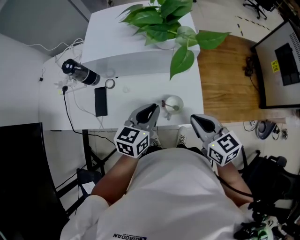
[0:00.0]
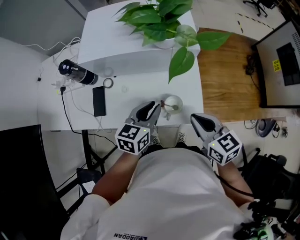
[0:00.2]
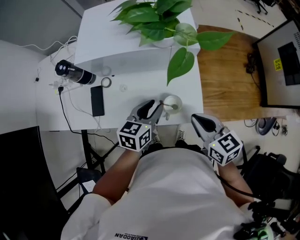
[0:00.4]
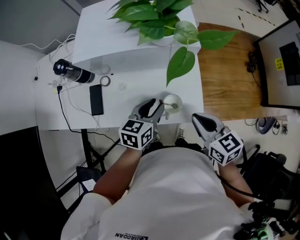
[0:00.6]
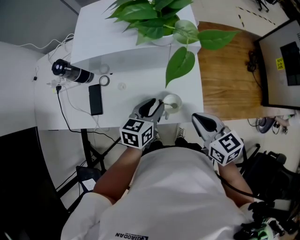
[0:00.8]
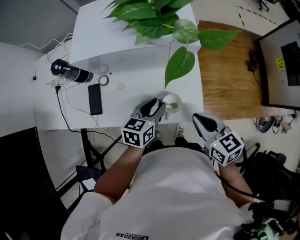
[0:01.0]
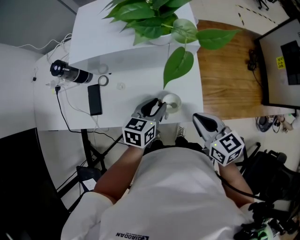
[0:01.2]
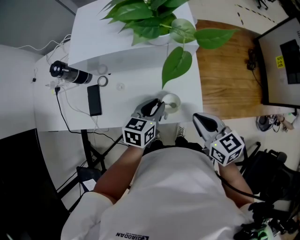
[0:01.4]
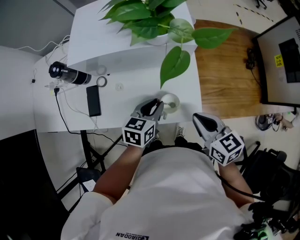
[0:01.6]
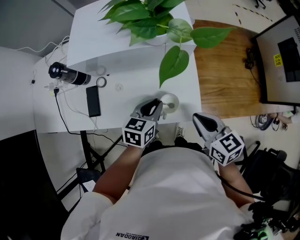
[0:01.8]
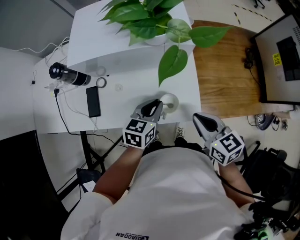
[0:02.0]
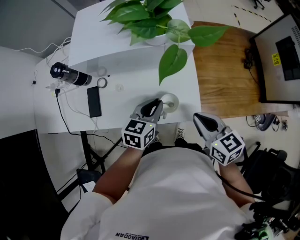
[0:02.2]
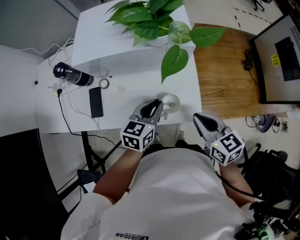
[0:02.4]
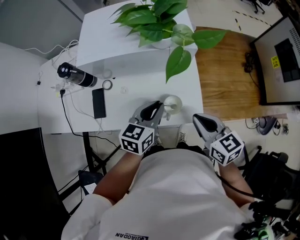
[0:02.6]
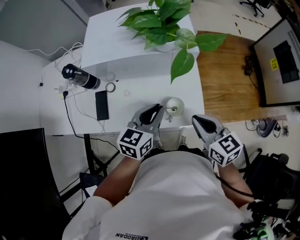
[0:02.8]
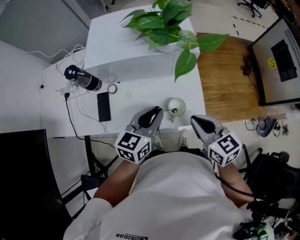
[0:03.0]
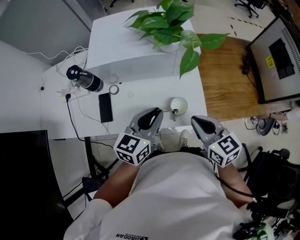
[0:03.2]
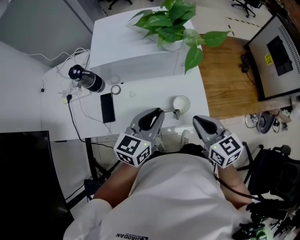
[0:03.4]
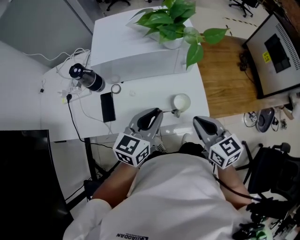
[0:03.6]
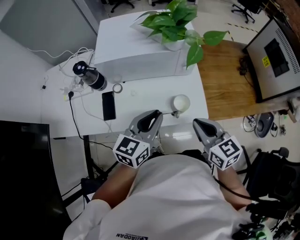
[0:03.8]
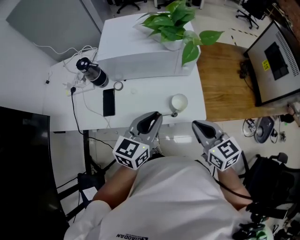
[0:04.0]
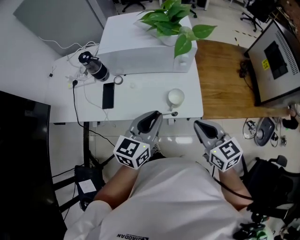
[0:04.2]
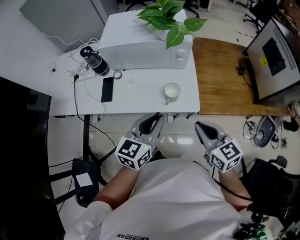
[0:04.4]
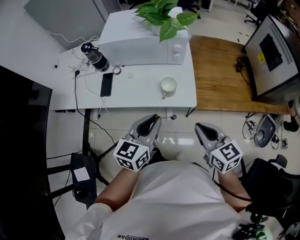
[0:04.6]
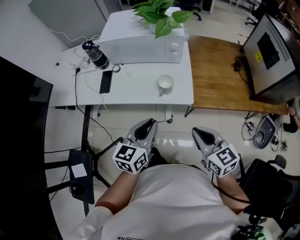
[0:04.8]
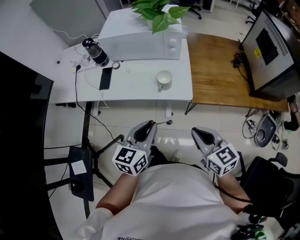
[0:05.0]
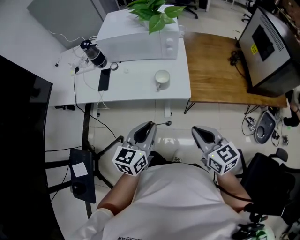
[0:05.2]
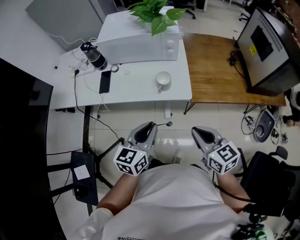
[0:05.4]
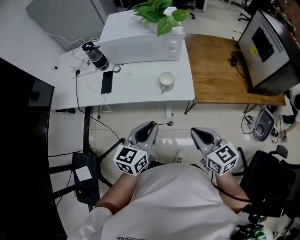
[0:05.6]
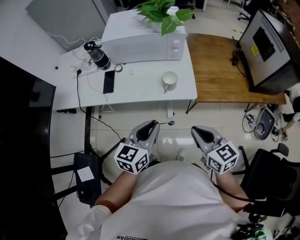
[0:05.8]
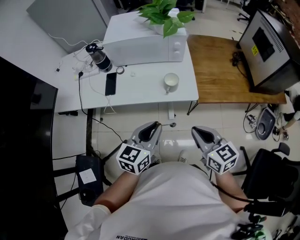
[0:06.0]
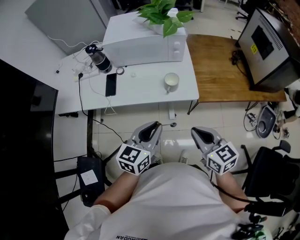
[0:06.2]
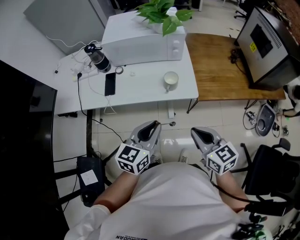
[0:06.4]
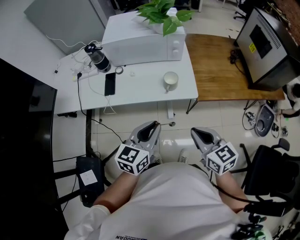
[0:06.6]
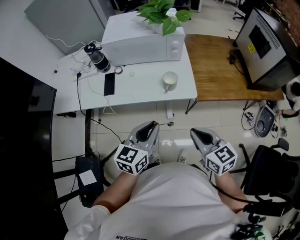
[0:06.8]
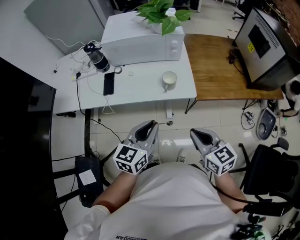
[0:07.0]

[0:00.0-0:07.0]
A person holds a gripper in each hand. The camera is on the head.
0:00.0 to 0:01.4: The left gripper moves downward, some 10 cm.
0:01.4 to 0:02.8: The left gripper travels upward by about 10 cm.
0:02.8 to 0:04.2: The right gripper is displaced backward by about 10 cm. The left gripper shifts roughly 15 cm backward and upward.
0:04.2 to 0:05.6: The two grippers go roughly 15 cm backward.
0:05.6 to 0:07.0: The grippers stay close to where they were, moving slightly.

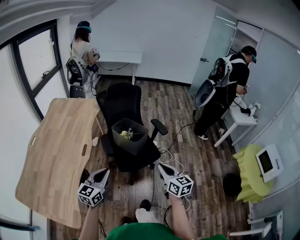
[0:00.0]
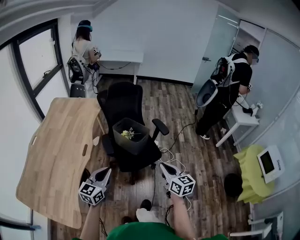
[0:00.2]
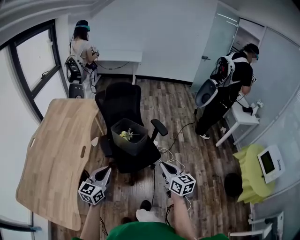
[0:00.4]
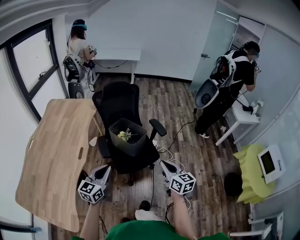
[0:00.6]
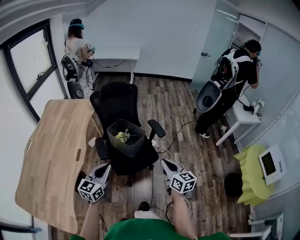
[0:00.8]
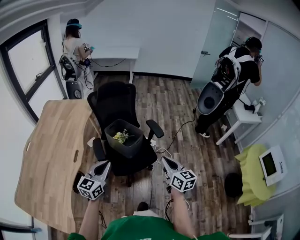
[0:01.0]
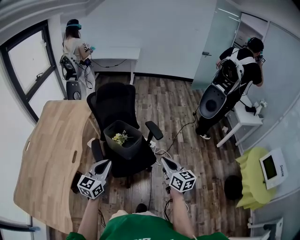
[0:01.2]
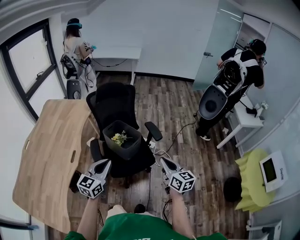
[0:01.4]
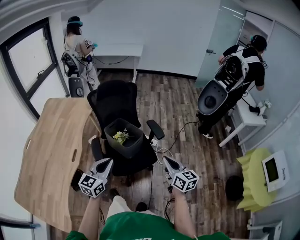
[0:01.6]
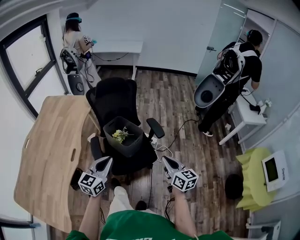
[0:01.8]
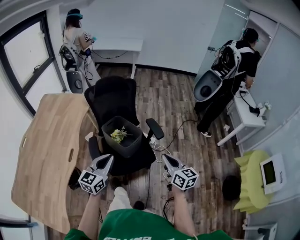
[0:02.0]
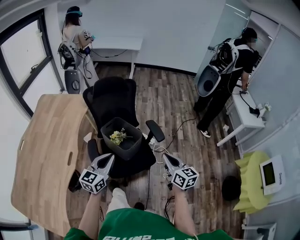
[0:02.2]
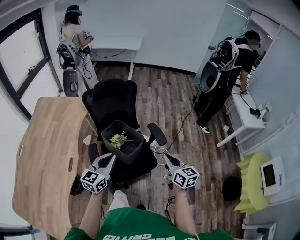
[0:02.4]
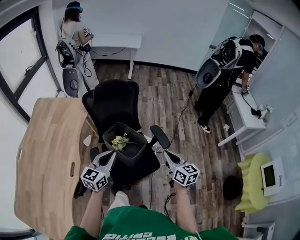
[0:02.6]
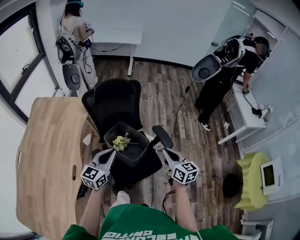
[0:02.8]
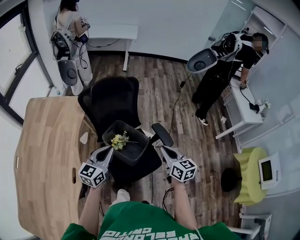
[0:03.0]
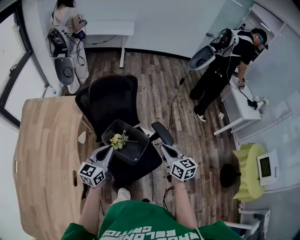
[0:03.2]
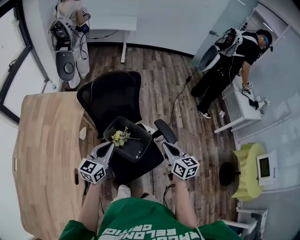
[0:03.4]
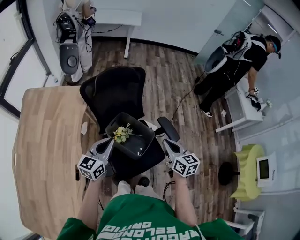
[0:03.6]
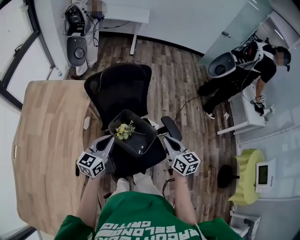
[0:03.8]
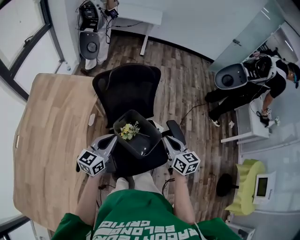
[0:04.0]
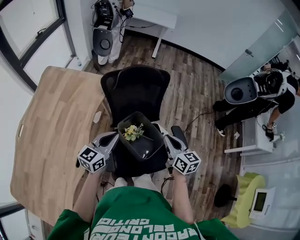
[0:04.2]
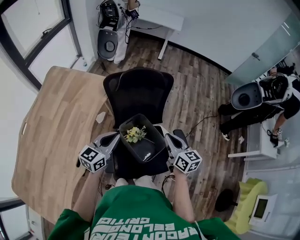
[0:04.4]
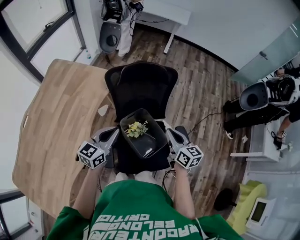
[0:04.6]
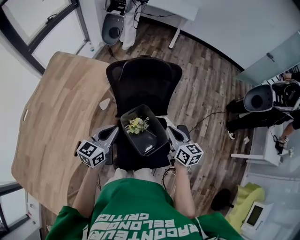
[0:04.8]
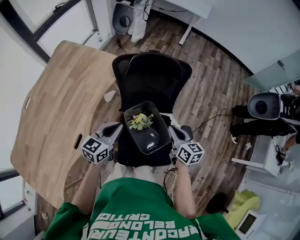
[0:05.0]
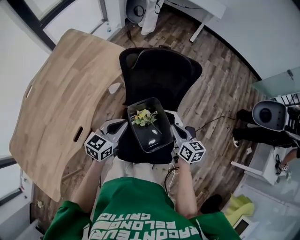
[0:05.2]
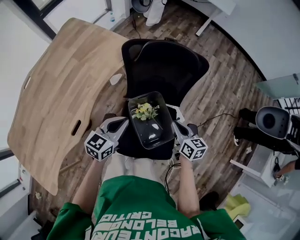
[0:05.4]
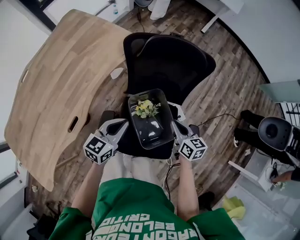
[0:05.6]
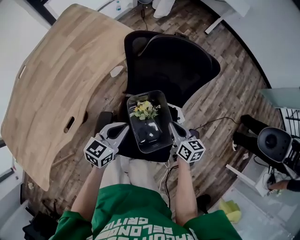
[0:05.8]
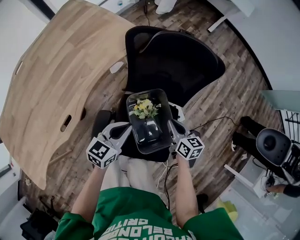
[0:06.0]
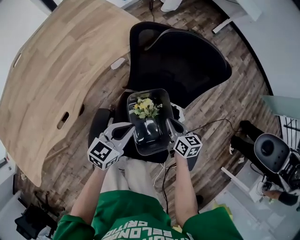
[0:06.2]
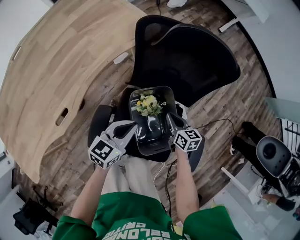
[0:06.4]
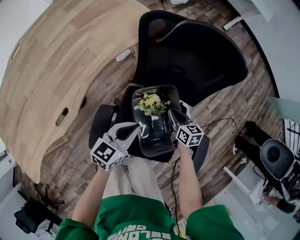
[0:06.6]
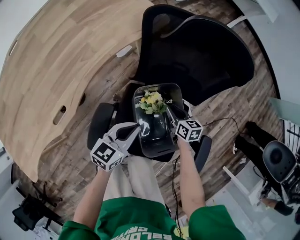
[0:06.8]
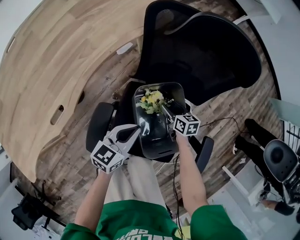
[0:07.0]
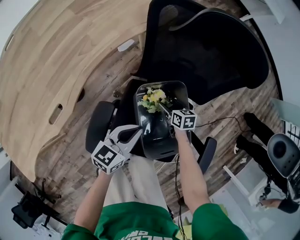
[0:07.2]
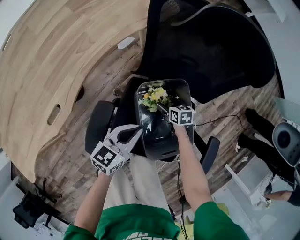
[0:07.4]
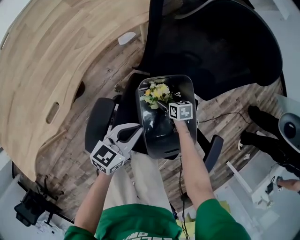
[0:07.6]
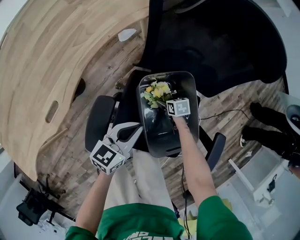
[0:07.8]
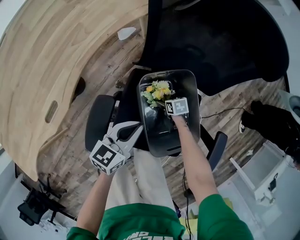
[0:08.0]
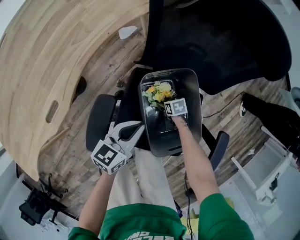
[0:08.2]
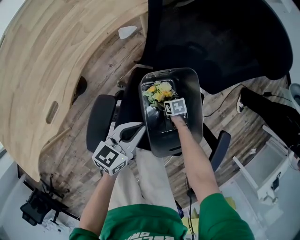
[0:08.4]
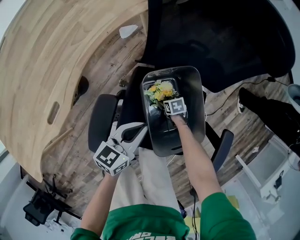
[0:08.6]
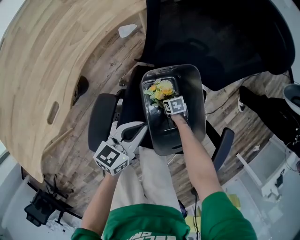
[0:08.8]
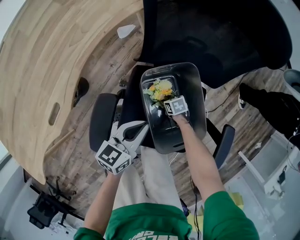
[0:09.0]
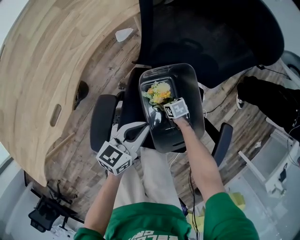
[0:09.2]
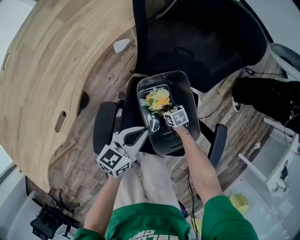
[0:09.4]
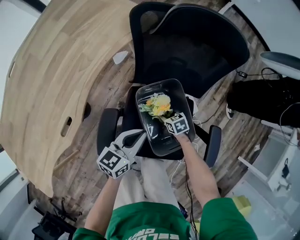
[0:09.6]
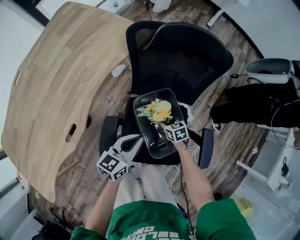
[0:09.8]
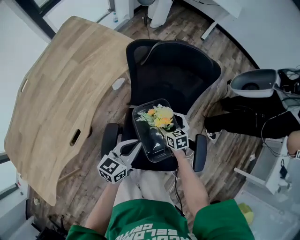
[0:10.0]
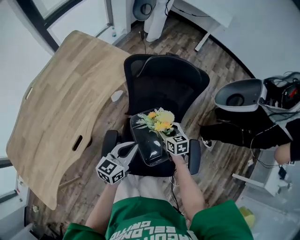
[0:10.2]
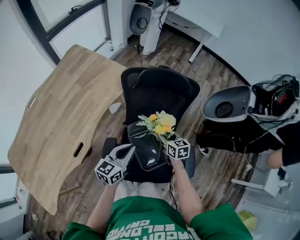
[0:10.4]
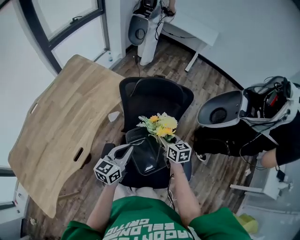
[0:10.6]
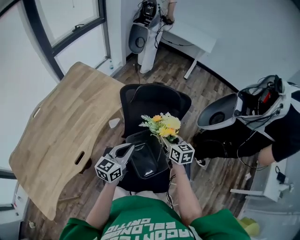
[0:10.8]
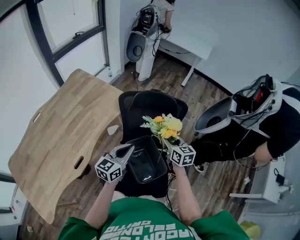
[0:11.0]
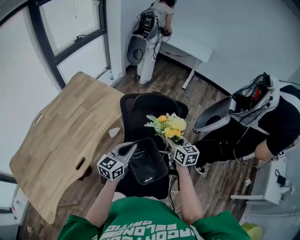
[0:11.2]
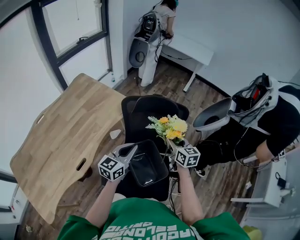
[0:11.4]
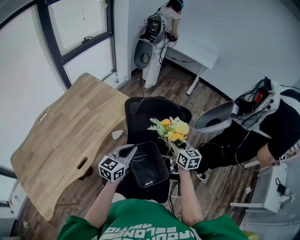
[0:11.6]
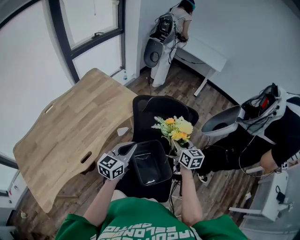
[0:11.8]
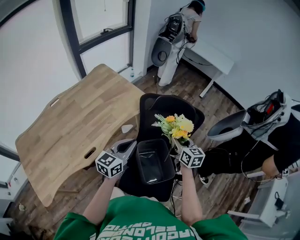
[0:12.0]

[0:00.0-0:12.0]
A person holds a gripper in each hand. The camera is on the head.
0:00.0 to 0:01.6: Both grippers move forward and to the right, approximately 20 cm.
0:01.6 to 0:03.0: The two grippers go some 25 cm forward and to the left.
0:03.0 to 0:04.4: The right gripper heads forward and to the left, covering some 15 cm; the left gripper heads forward and to the left, covering approximately 10 cm.
0:04.4 to 0:06.0: The left gripper shifts some 15 cm downward, and rotates some 20 degrees. The right gripper travels downward and forward by about 25 cm, and turns by some 30 degrees.
0:06.0 to 0:07.6: The left gripper travels downward by about 15 cm; the right gripper moves downward, approximately 35 cm, rotates some 40 degrees, and opens its fingers.
0:07.6 to 0:09.0: The right gripper shifts by some 10 cm, and closes its fingers.
0:09.0 to 0:10.4: The left gripper is displaced upward by roughly 25 cm, while the right gripper moves upward, some 40 cm, and tips its fingers upward by some 30 degrees.
0:10.4 to 0:12.0: The left gripper travels upward by about 10 cm; the right gripper heads upward, covering approximately 20 cm.

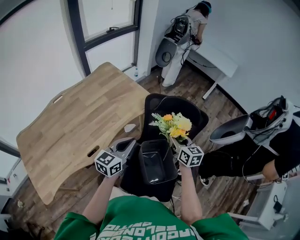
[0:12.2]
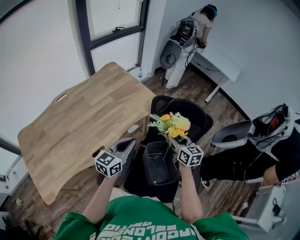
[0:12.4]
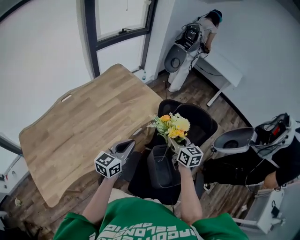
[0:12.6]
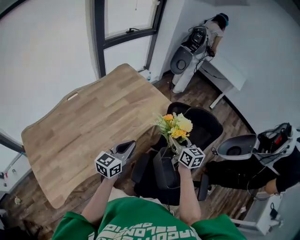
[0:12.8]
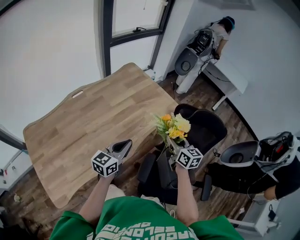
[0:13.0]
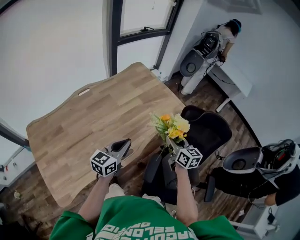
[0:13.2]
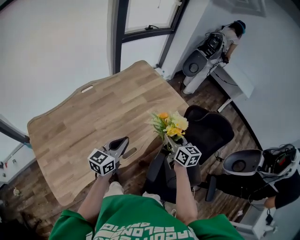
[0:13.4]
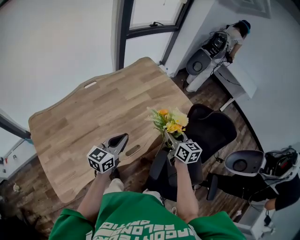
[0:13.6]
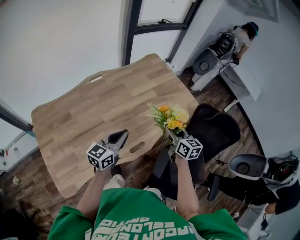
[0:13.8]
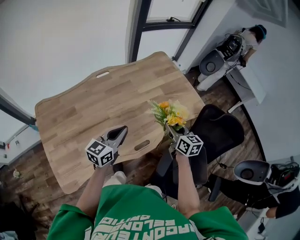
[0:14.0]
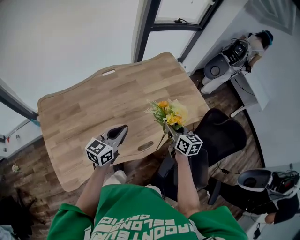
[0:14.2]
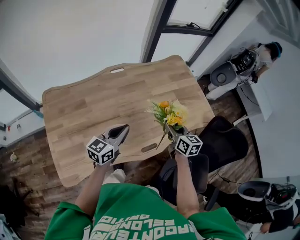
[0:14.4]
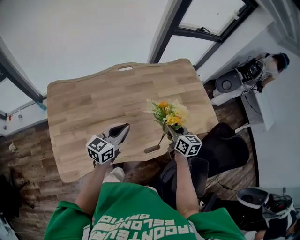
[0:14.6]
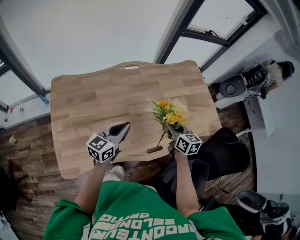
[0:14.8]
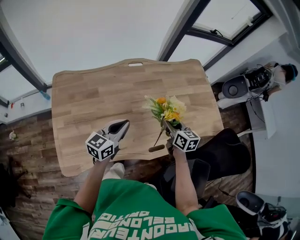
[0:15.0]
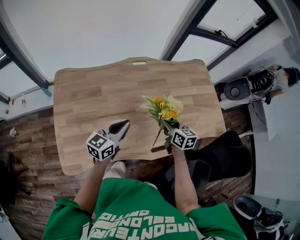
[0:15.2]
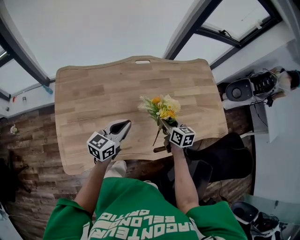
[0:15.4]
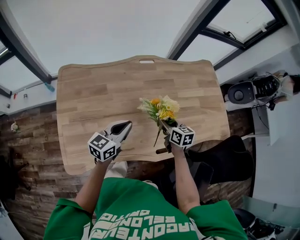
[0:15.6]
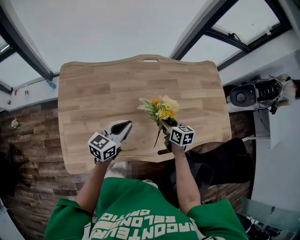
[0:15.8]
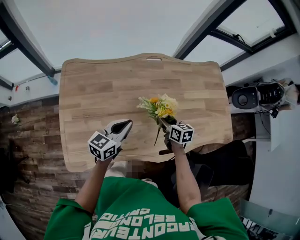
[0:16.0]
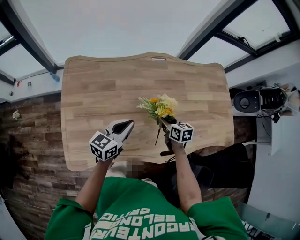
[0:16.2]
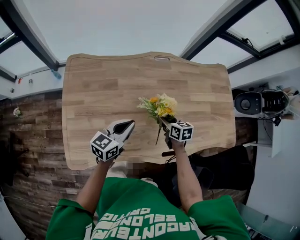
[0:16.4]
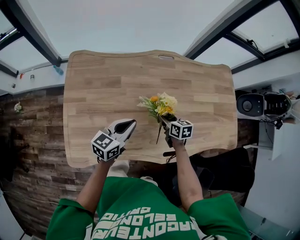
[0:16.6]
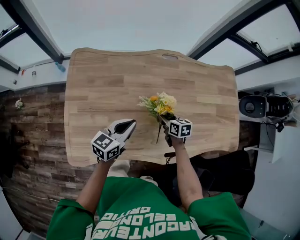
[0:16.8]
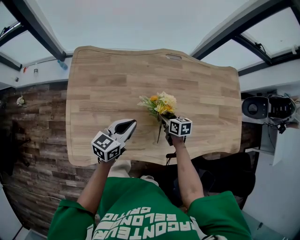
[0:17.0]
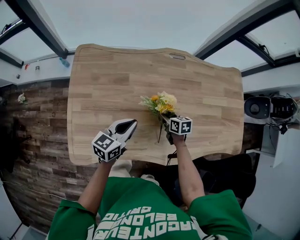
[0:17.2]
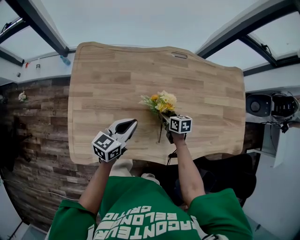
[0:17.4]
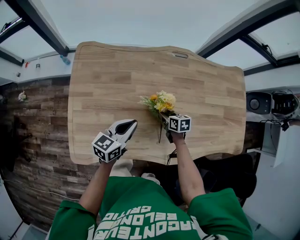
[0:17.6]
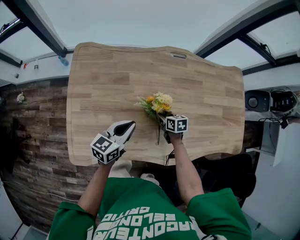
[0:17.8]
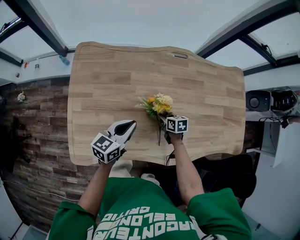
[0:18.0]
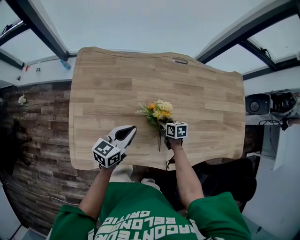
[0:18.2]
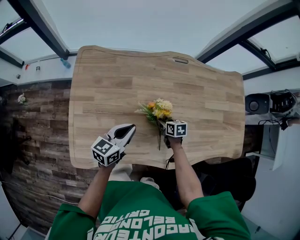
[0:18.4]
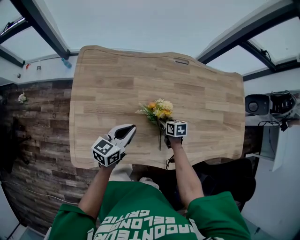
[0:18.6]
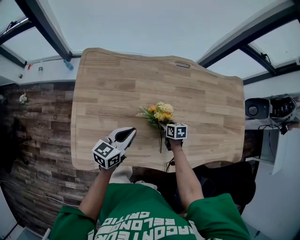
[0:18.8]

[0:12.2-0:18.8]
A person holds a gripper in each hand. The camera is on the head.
0:12.2 to 0:13.8: Both grippers travel together to the left, roughly 40 cm.
0:13.8 to 0:15.4: The left gripper goes about 20 cm to the left; the right gripper travels to the left and downward by approximately 25 cm, and swivels some 30 degrees.
0:15.4 to 0:17.2: The right gripper goes some 20 cm downward and to the left, and changes its angle by about 20 degrees; the left gripper heads to the left and downward, covering roughly 10 cm.
0:17.2 to 0:18.8: The right gripper moves downward, roughly 5 cm.